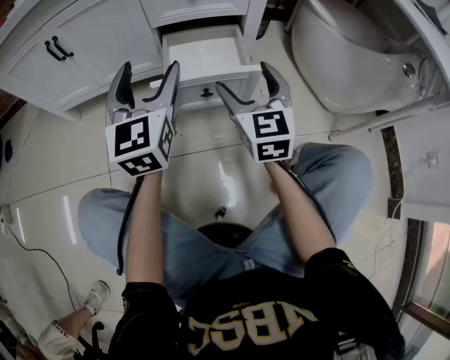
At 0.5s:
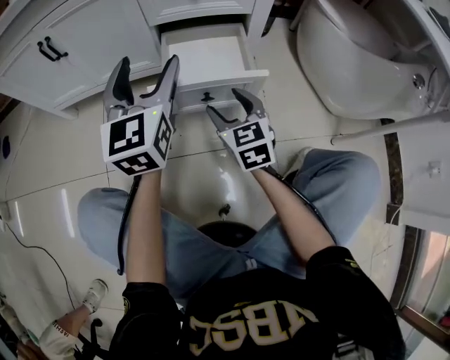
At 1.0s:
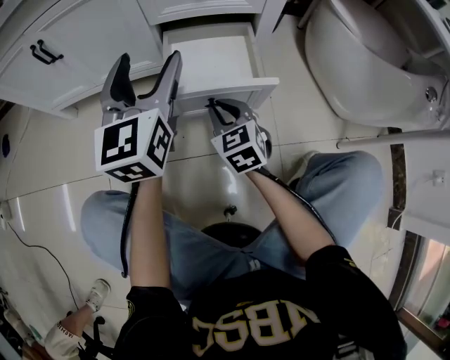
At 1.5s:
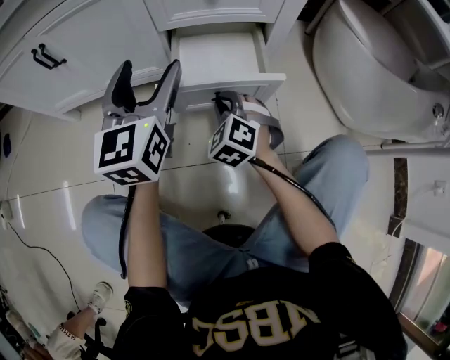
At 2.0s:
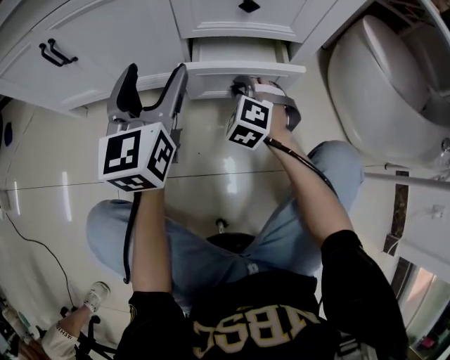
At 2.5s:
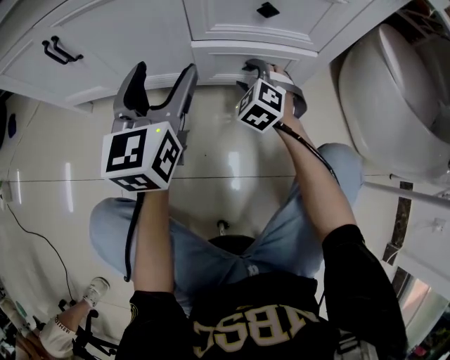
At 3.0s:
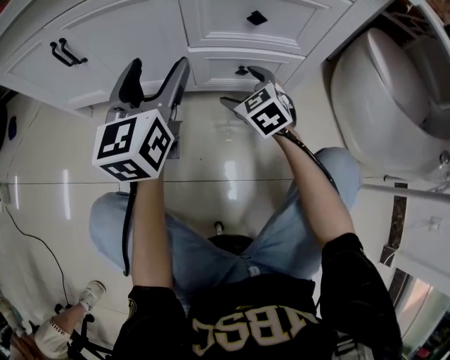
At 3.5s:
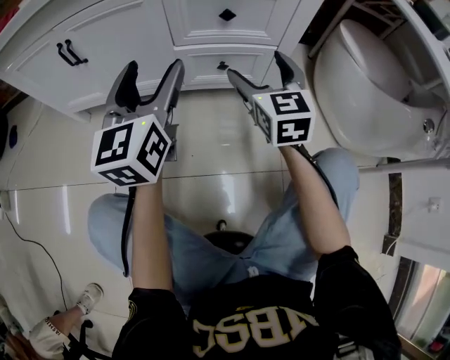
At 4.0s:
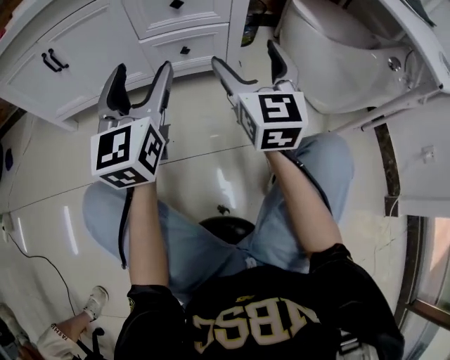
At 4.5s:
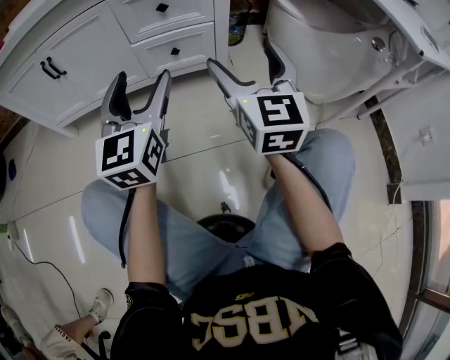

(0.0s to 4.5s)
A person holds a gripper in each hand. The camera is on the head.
0.0s - 2.0s: The left gripper shifts roughly 15 cm forward and to the left; the right gripper moves forward, downward and to the left, about 25 cm, rolls counterclockwise, seen from behind, by roughly 50 degrees, and closes.
2.0s - 4.5s: The left gripper heads backward and to the right, covering roughly 25 cm, while the right gripper goes approximately 40 cm upward, backward and to the right, tips its fingers upward by about 50 degrees, and opens up.

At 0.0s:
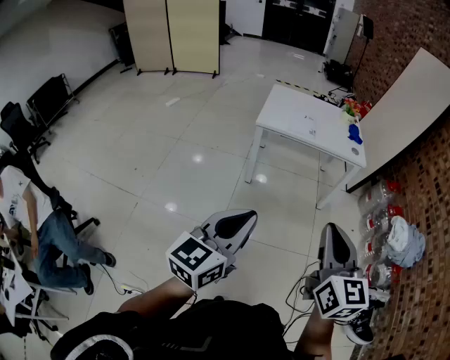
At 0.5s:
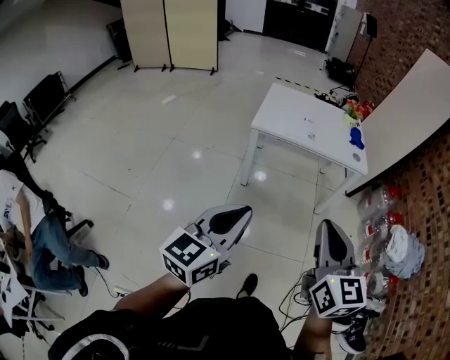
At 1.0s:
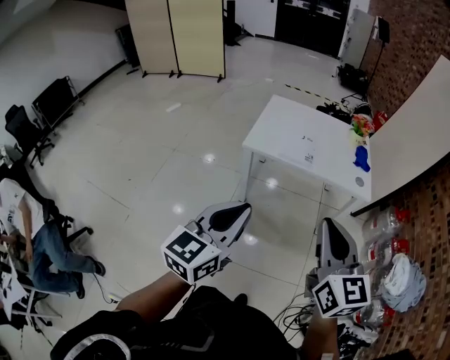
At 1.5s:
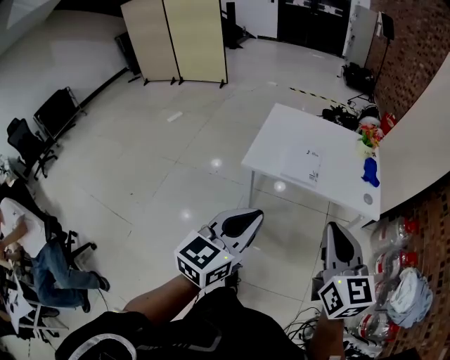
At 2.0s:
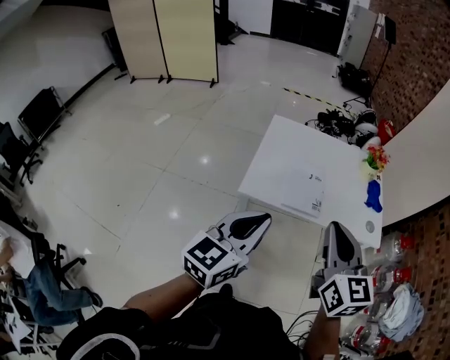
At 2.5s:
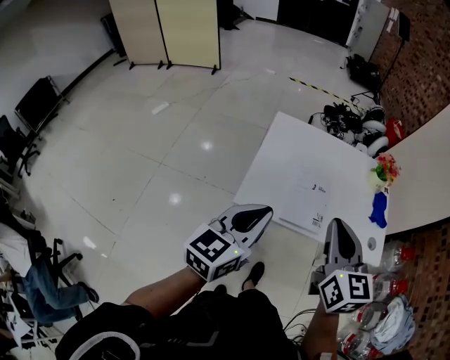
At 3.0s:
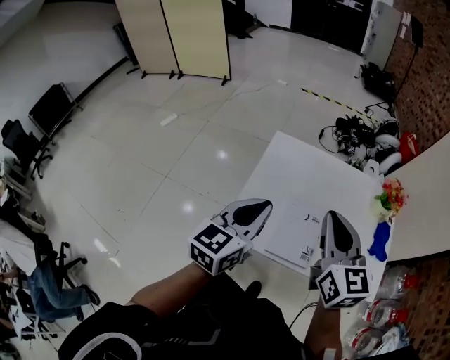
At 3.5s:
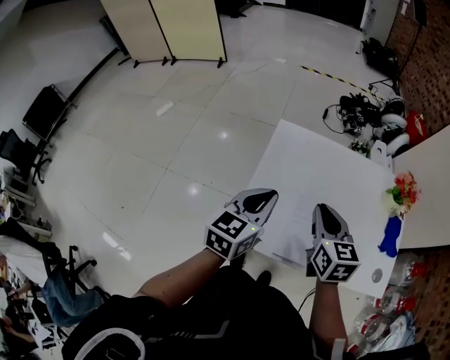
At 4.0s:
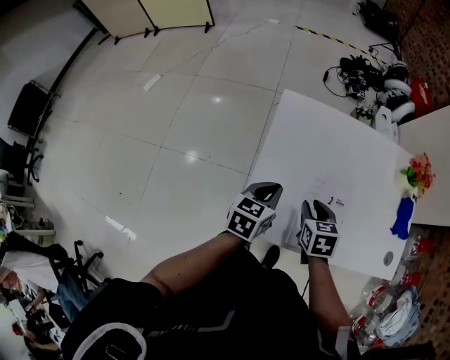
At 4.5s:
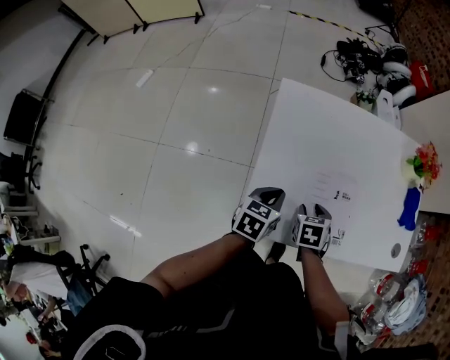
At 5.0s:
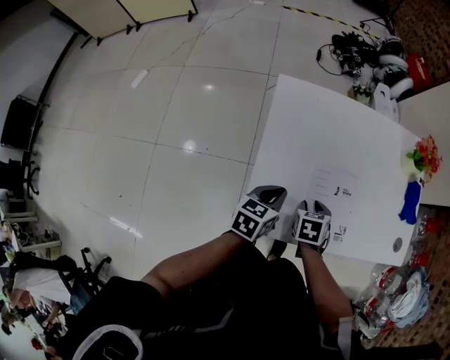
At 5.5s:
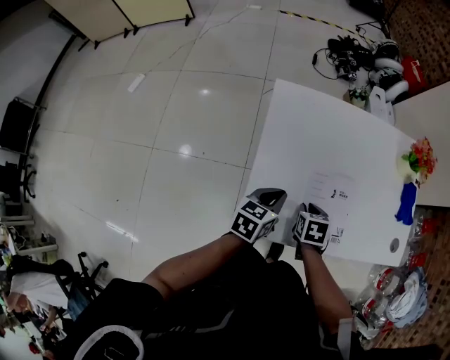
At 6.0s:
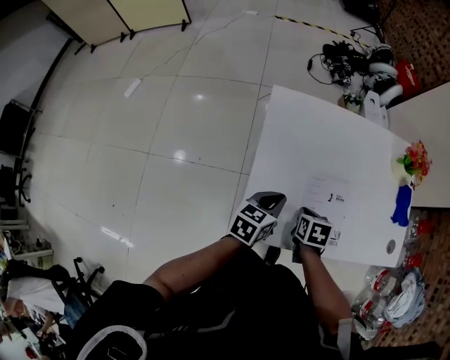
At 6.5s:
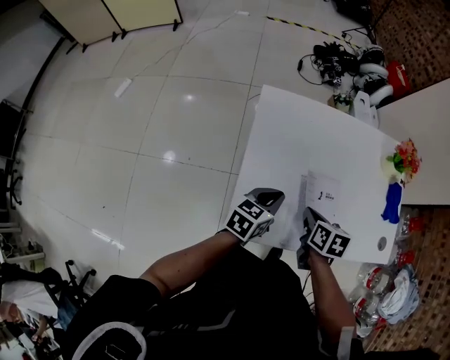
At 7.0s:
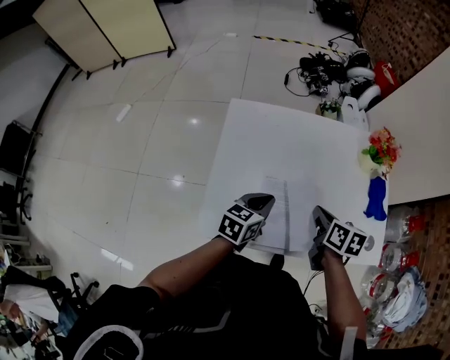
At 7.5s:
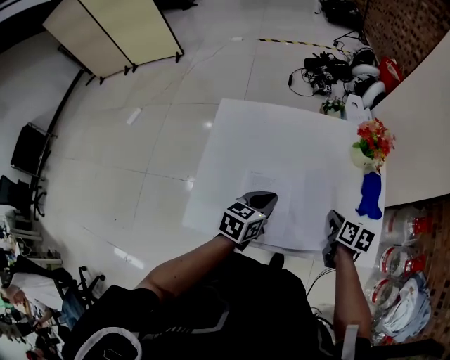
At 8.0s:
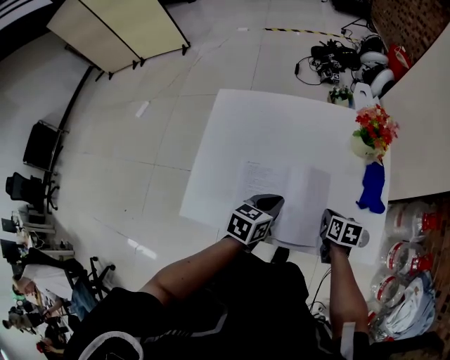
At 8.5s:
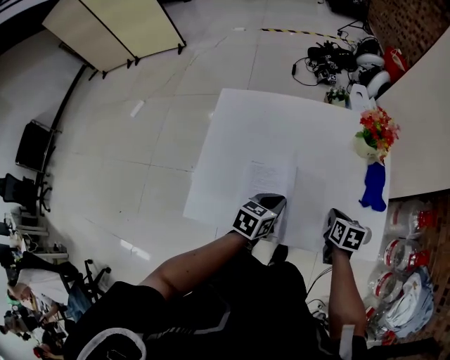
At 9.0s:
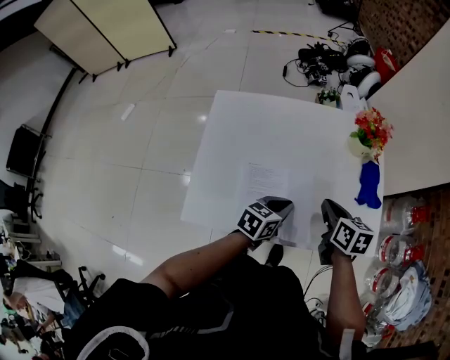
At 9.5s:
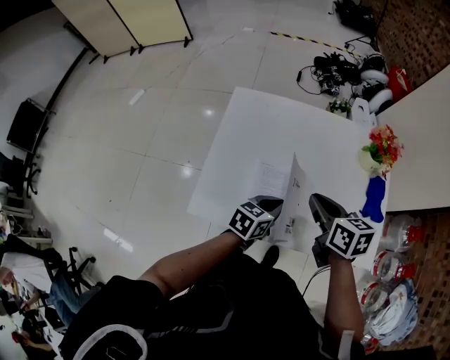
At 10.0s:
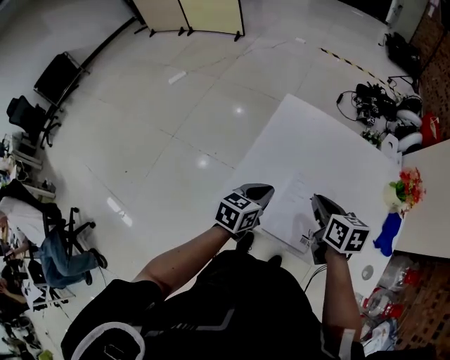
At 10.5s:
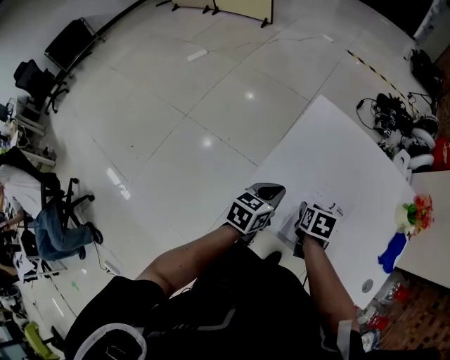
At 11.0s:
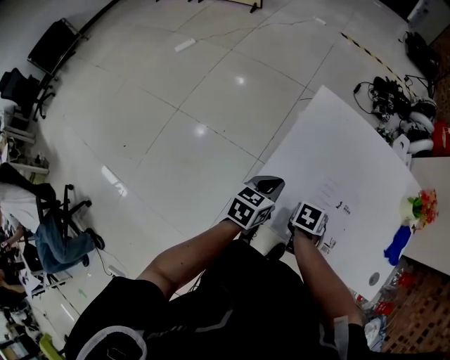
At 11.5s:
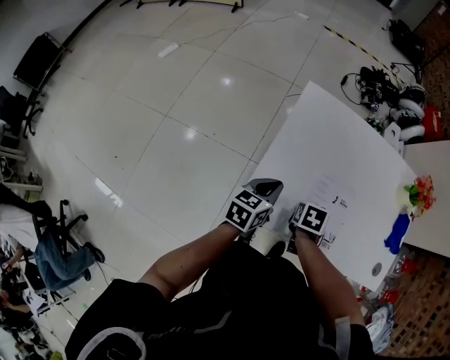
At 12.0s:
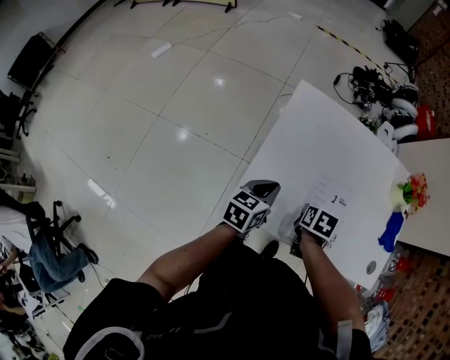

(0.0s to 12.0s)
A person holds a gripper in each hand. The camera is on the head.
0.0s - 2.0s: The two grippers travel together, forward, approximately 60 cm.
2.0s - 4.0s: Both grippers move forward and downward, roughly 50 cm. The left gripper swivels some 30 degrees. The right gripper tips its fingers downward by approximately 40 degrees.
4.0s - 6.0s: The left gripper moves about 5 cm; the right gripper heads downward, covering some 10 cm, and turns by roughly 20 degrees.
6.0s - 8.0s: The grippers both shift to the right by some 30 cm.
8.0s - 10.0s: The left gripper ends up roughly 20 cm from where it was; the right gripper ends up approximately 30 cm from where it was, and turns by approximately 30 degrees.
10.0s - 12.0s: The left gripper moves roughly 10 cm, while the right gripper moves downward, roughly 15 cm, tilts its fingers some 30 degrees downward, and opens and closes again.

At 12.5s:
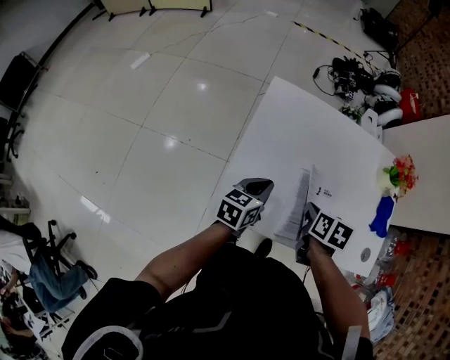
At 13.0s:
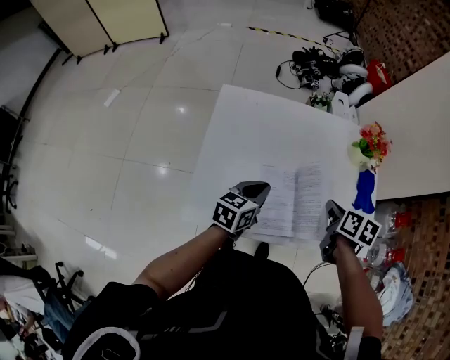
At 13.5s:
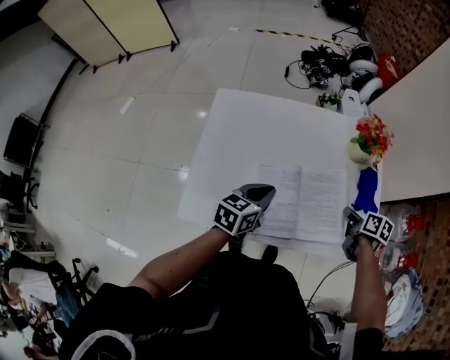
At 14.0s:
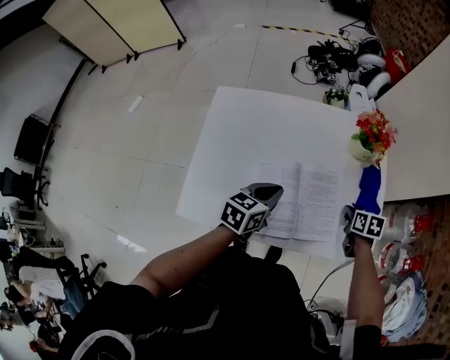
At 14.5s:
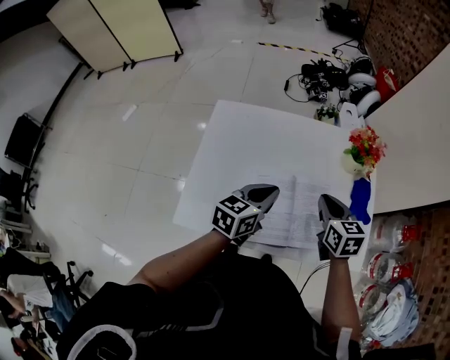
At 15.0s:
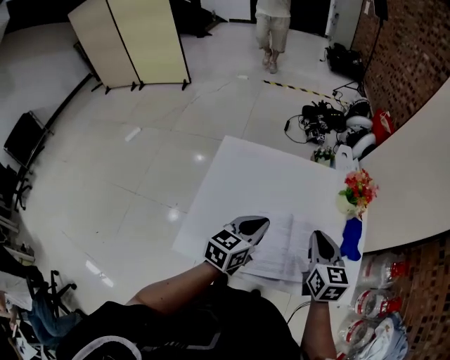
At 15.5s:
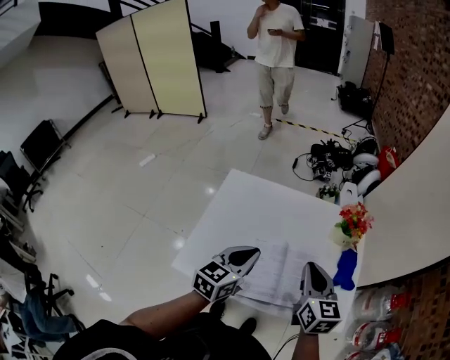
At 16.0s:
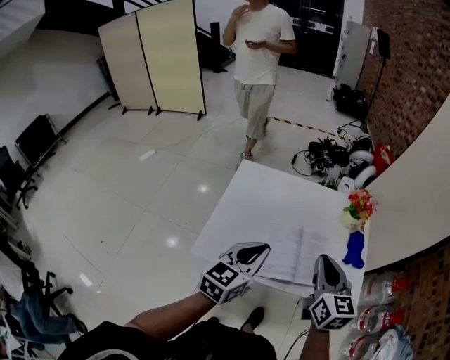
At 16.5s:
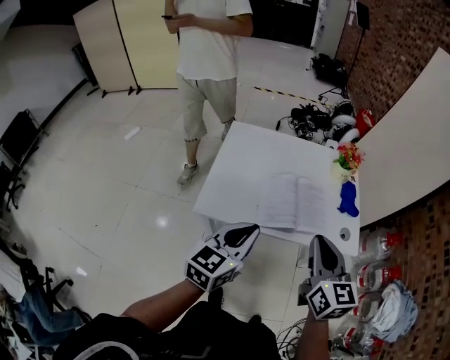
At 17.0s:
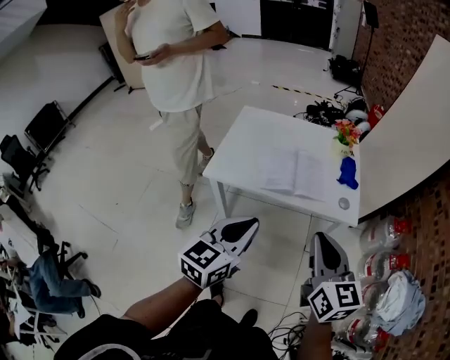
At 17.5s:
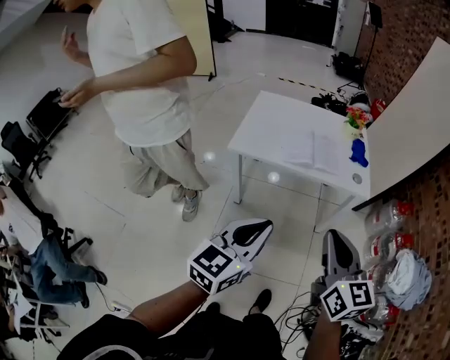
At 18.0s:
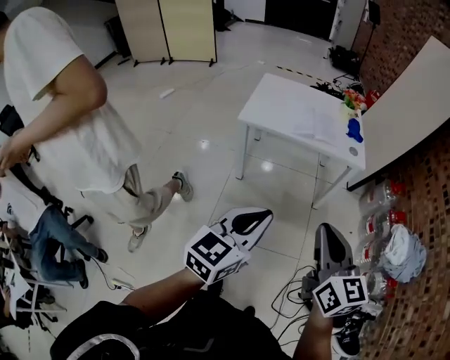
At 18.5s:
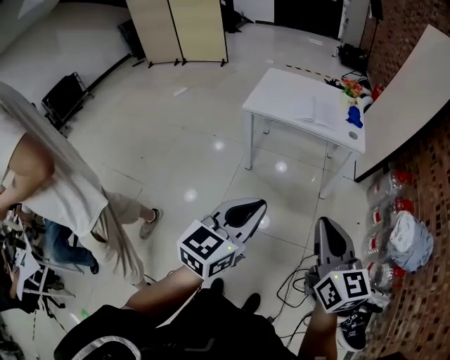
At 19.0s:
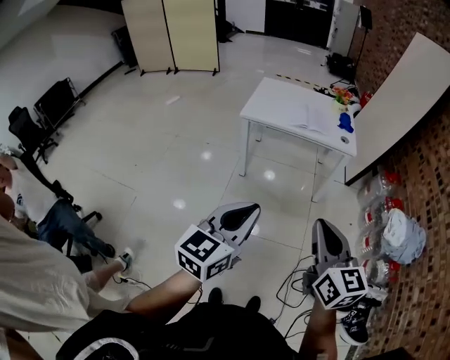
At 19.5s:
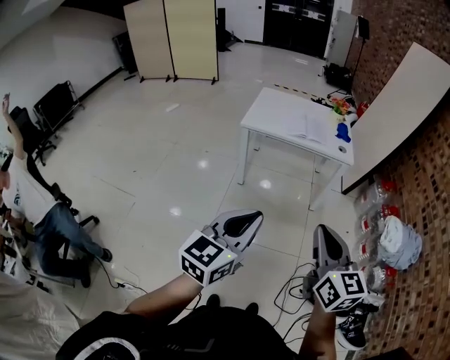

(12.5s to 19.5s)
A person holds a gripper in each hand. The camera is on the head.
12.5s - 14.5s: The right gripper shifts about 20 cm to the right, and turns by roughly 30 degrees, while the left gripper shifts approximately 25 cm to the right and upward.
14.5s - 16.0s: The left gripper is displaced backward, upward and to the left by some 20 cm, while the right gripper heads backward and upward, covering some 25 cm, and changes its angle by approximately 20 degrees.
16.0s - 17.5s: The pair of grippers is taken backward, roughly 50 cm.
17.5s - 19.5s: Both grippers move backward, roughly 35 cm.

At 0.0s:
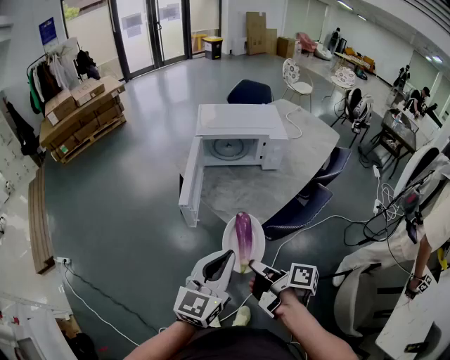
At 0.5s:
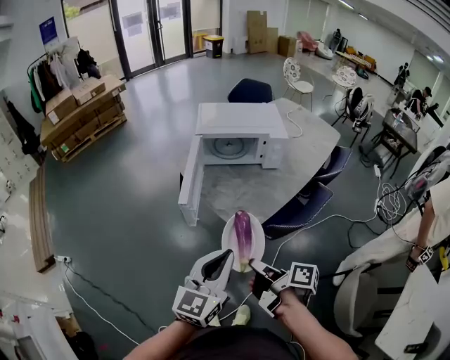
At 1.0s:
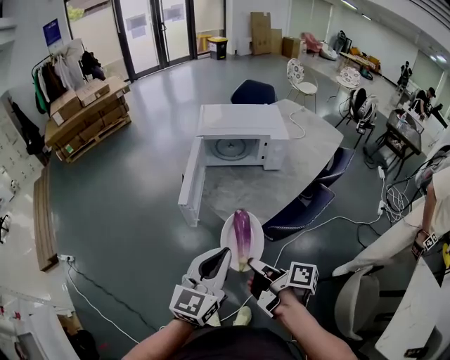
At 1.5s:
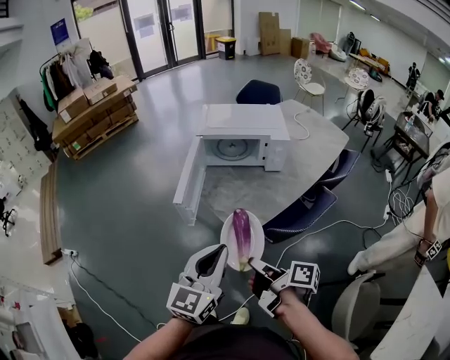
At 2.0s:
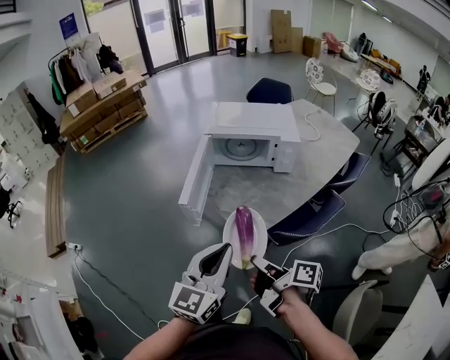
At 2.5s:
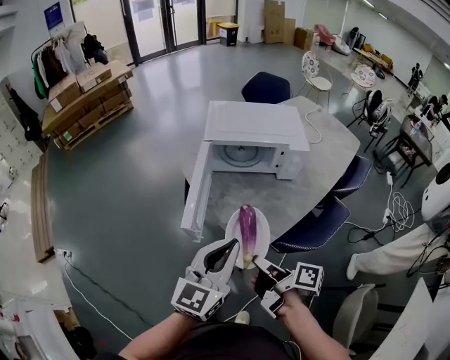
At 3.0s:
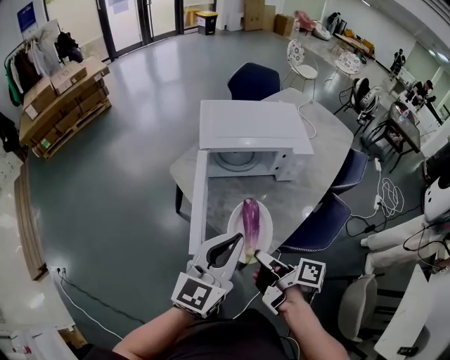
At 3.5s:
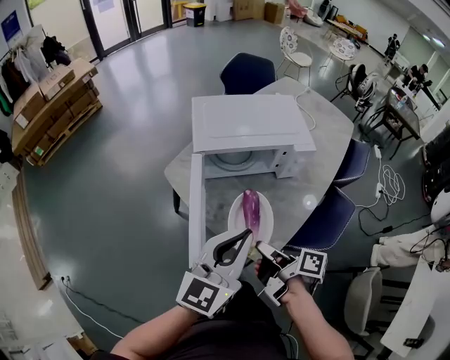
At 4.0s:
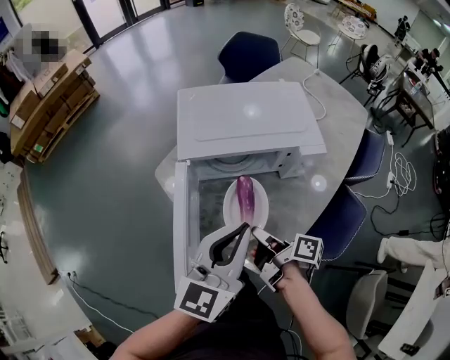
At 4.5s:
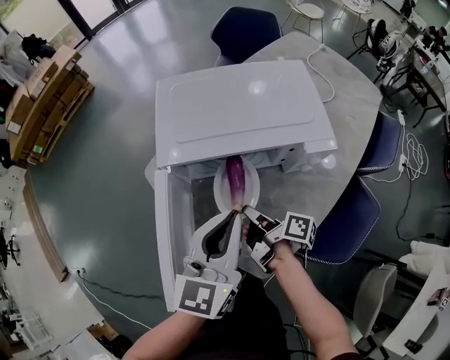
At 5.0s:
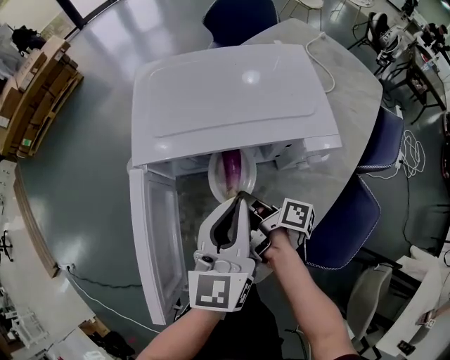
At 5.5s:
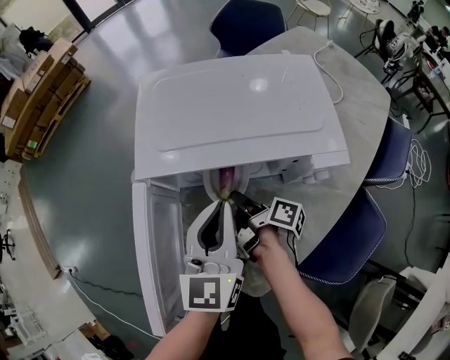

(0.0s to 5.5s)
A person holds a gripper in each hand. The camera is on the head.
2.0s - 3.5s: The left gripper moves about 25 cm.
3.5s - 5.5s: The left gripper shifts by roughly 30 cm, and rotates about 30 degrees.
